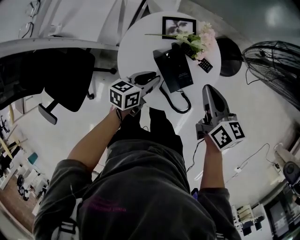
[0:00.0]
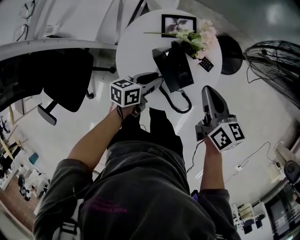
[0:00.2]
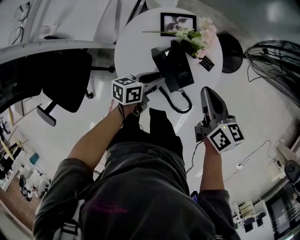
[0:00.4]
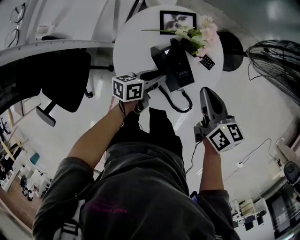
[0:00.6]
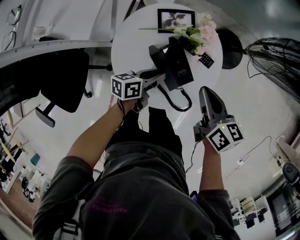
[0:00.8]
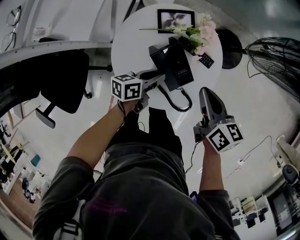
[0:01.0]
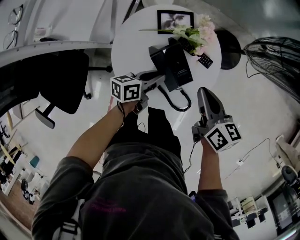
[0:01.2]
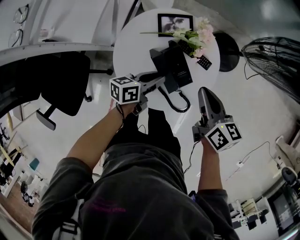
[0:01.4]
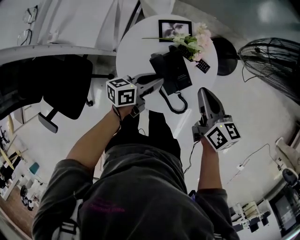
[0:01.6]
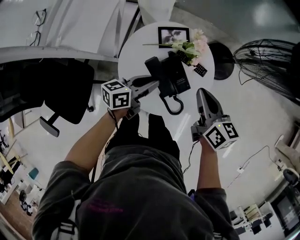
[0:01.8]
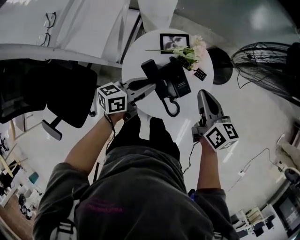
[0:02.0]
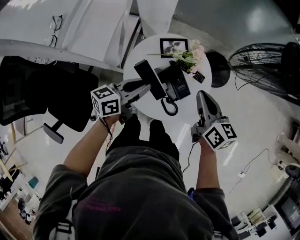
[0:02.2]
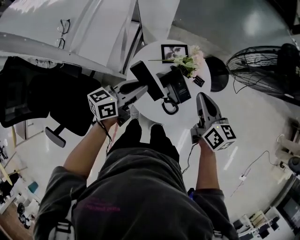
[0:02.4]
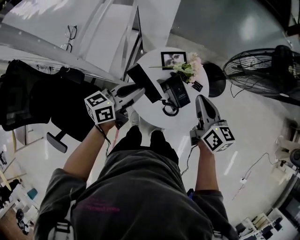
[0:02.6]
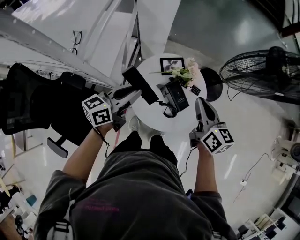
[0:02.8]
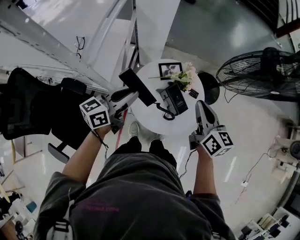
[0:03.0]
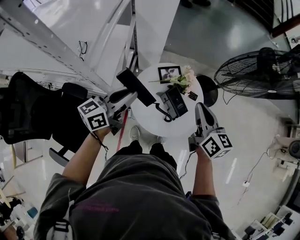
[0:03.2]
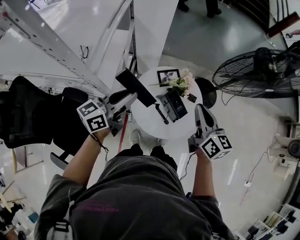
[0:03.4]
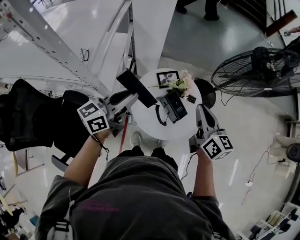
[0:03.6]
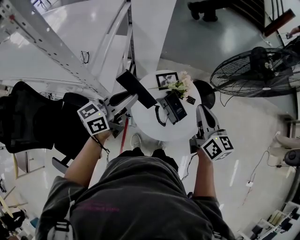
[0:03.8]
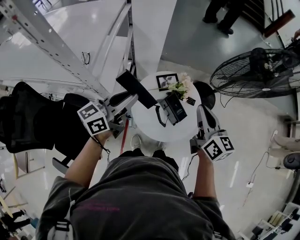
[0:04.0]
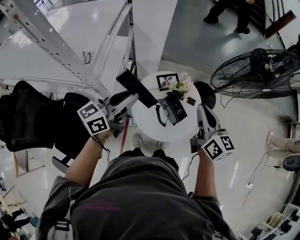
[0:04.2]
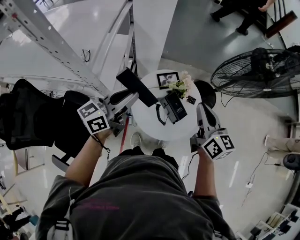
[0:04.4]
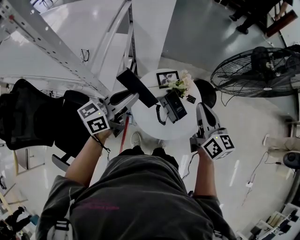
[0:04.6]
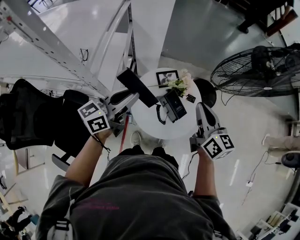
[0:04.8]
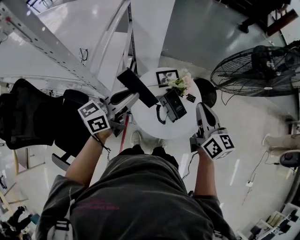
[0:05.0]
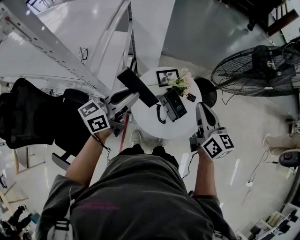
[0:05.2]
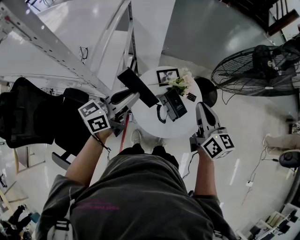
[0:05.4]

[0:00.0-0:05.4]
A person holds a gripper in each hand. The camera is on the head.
0:00.0 to 0:01.4: The grippers move only a little.
0:01.4 to 0:02.8: The right gripper goes some 15 cm upward, while the left gripper moves upward and to the left, roughly 30 cm, and swivels about 30 degrees.
0:02.8 to 0:04.0: Both grippers travel together upward, some 10 cm.
0:04.0 to 0:05.4: There are only small adjustments of the grippers.

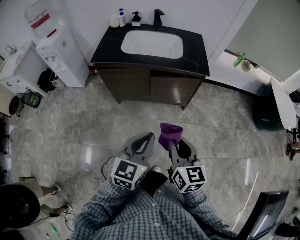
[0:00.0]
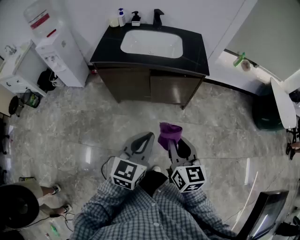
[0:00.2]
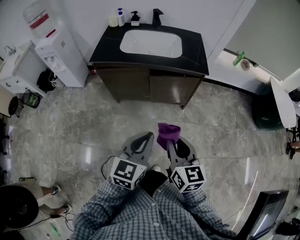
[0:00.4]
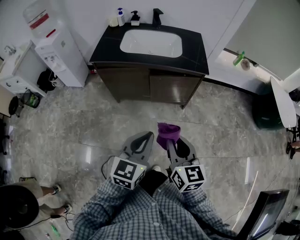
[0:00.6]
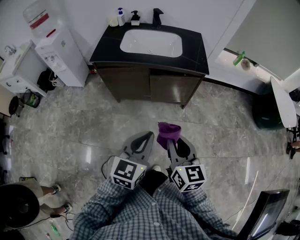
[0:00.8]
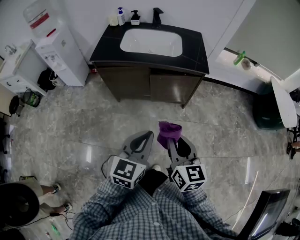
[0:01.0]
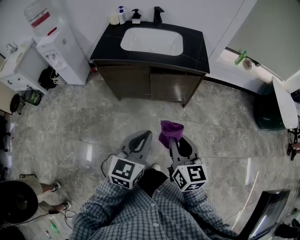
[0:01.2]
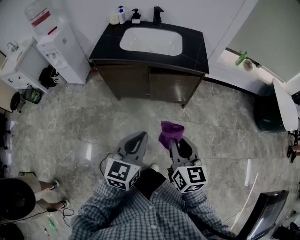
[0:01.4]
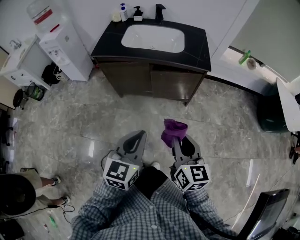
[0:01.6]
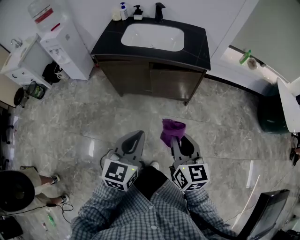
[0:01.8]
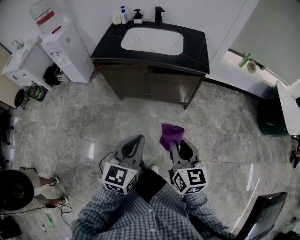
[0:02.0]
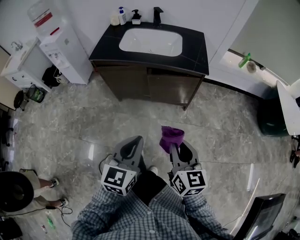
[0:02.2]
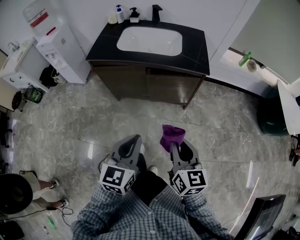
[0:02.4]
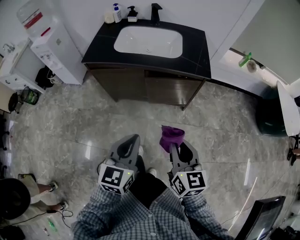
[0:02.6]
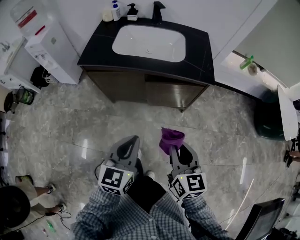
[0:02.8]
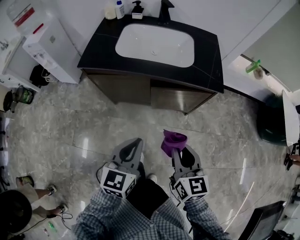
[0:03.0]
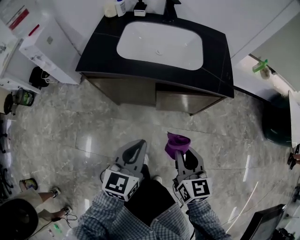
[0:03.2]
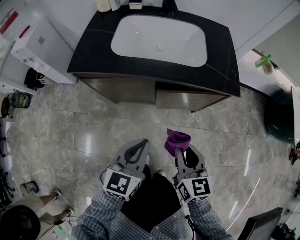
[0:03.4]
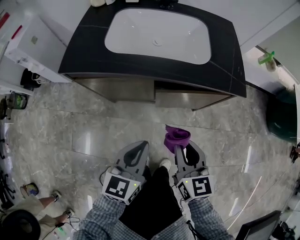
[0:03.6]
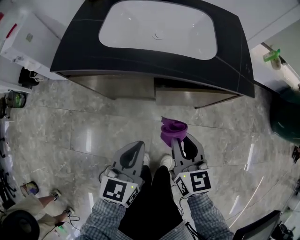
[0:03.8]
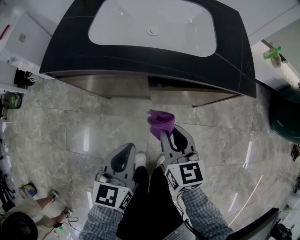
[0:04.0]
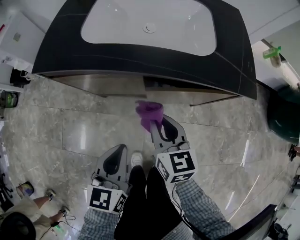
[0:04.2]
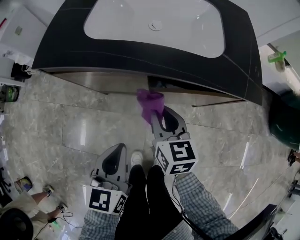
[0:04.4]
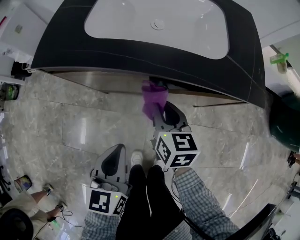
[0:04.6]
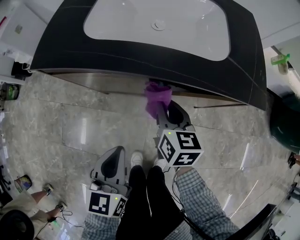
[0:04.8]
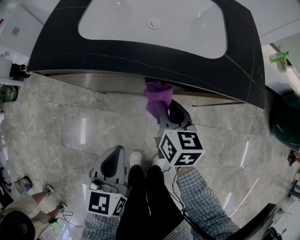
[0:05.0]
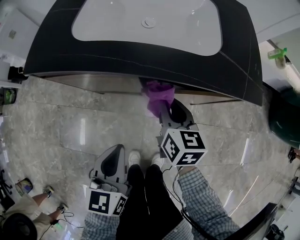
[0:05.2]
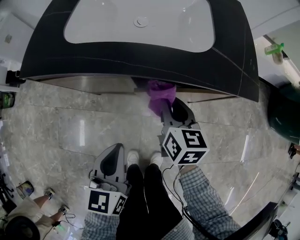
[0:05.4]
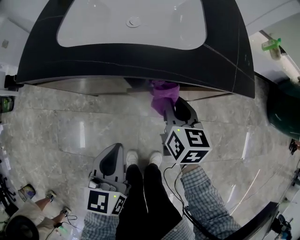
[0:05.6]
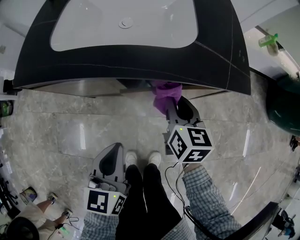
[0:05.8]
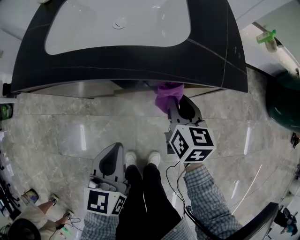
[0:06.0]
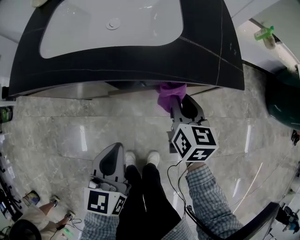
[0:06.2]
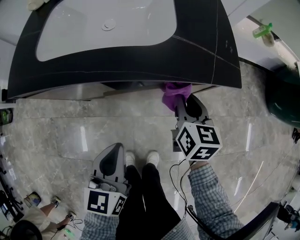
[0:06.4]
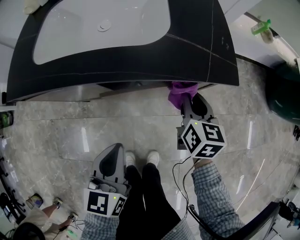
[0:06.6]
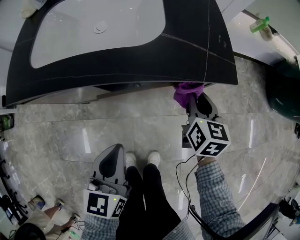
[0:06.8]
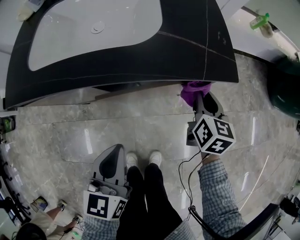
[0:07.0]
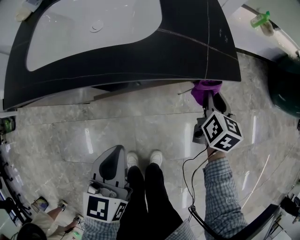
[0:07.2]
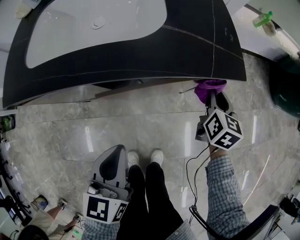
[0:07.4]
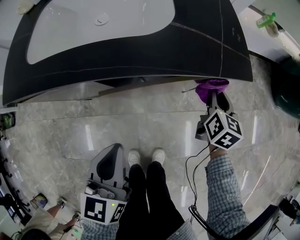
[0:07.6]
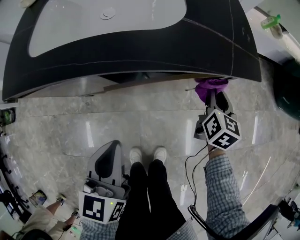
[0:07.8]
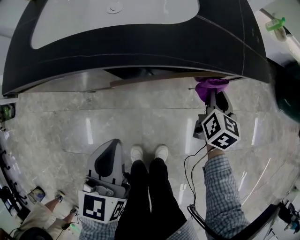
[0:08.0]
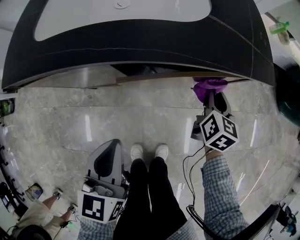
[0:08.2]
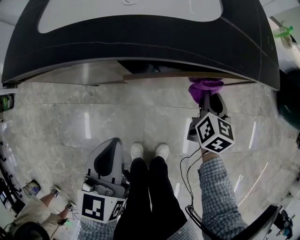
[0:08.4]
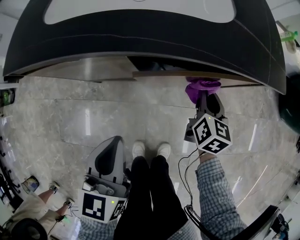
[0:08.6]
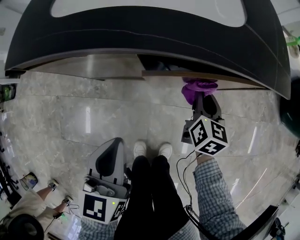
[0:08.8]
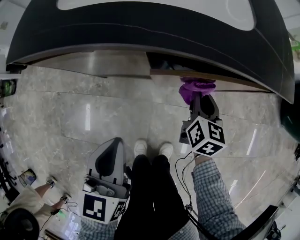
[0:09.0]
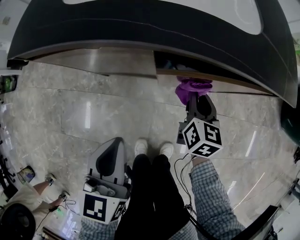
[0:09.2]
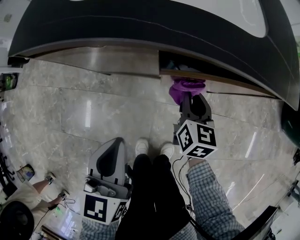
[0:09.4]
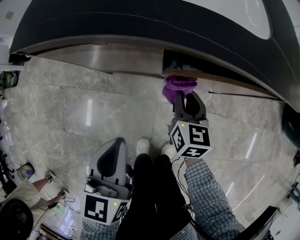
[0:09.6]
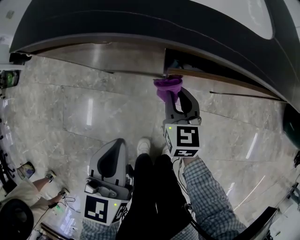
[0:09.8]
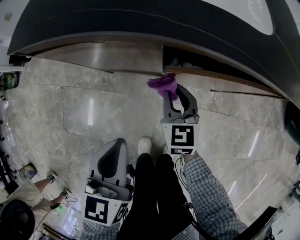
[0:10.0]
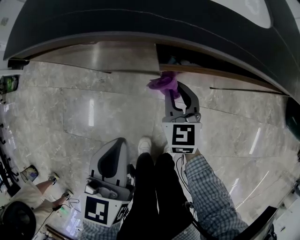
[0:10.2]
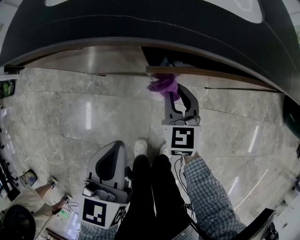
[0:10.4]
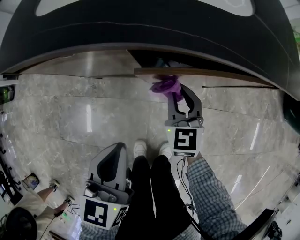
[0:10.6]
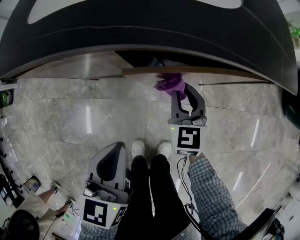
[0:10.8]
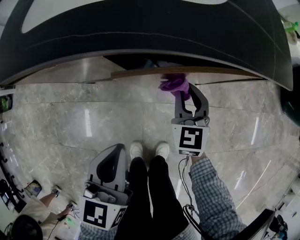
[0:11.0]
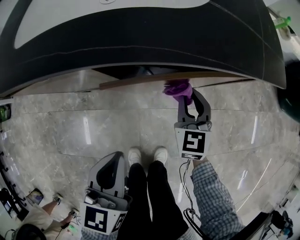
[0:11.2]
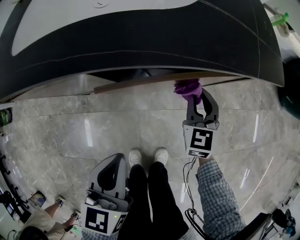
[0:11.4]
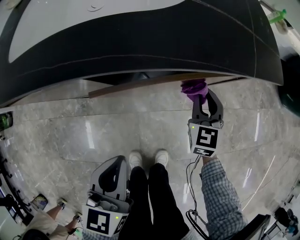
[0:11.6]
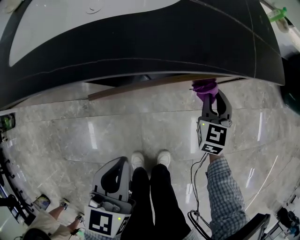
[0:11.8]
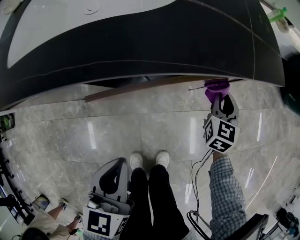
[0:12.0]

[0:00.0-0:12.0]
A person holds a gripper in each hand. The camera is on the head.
0:00.0 to 0:01.6: The grippers stay close to where they were, moving slightly.
0:01.6 to 0:03.0: The grippers both shift forward and downward by approximately 20 cm.
0:03.0 to 0:04.4: The right gripper is displaced forward and downward by some 30 cm, while the left gripper is displaced downward and forward by some 20 cm.
0:04.4 to 0:06.0: The left gripper shifts about 10 cm to the right, while the right gripper heads to the right, covering roughly 15 cm.
0:06.0 to 0:07.6: The right gripper is displaced to the right by about 20 cm, and changes its angle by approximately 20 degrees.
0:07.6 to 0:09.0: The left gripper travels to the left by approximately 10 cm. Meanwhile the right gripper moves to the left, about 20 cm.
0:09.0 to 0:10.4: The right gripper moves to the left, about 10 cm, and rotates approximately 30 degrees.
0:10.4 to 0:12.0: The right gripper travels to the right by about 30 cm, and turns by approximately 30 degrees. The left gripper goes about 10 cm to the right.

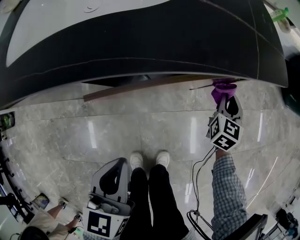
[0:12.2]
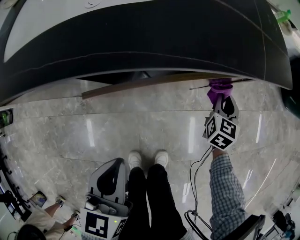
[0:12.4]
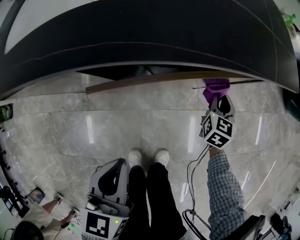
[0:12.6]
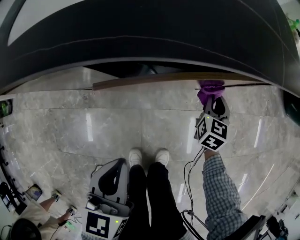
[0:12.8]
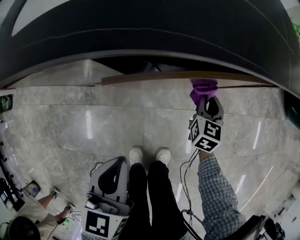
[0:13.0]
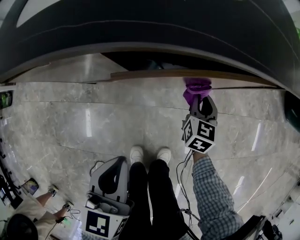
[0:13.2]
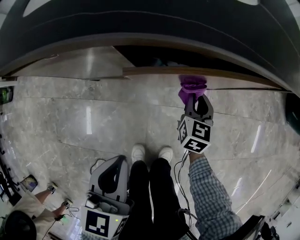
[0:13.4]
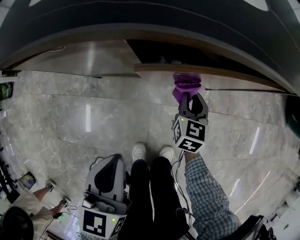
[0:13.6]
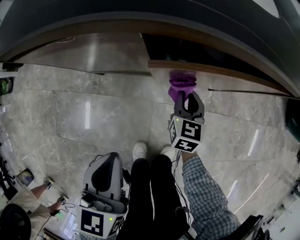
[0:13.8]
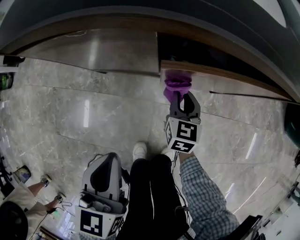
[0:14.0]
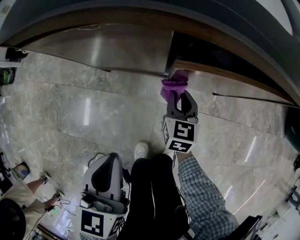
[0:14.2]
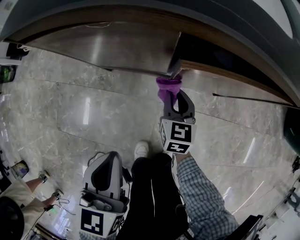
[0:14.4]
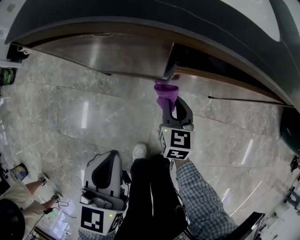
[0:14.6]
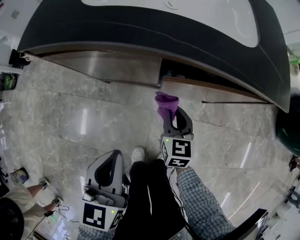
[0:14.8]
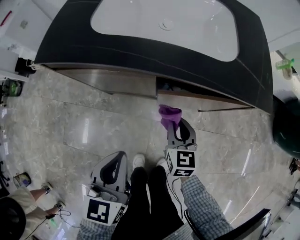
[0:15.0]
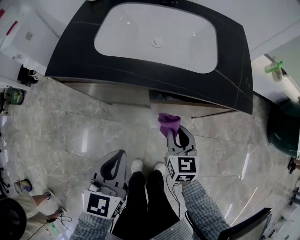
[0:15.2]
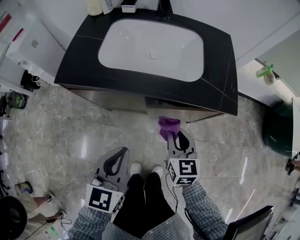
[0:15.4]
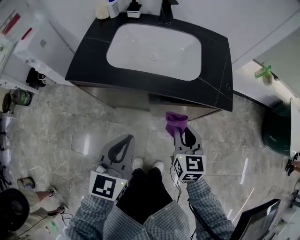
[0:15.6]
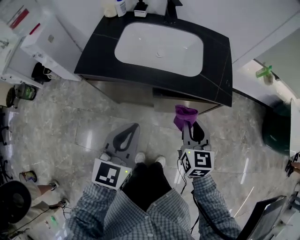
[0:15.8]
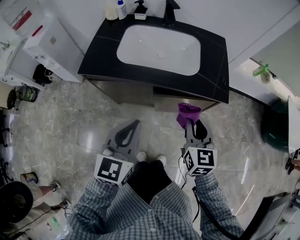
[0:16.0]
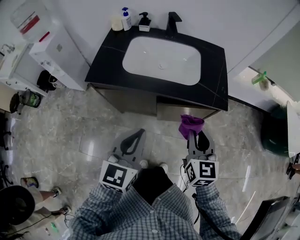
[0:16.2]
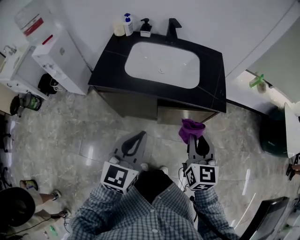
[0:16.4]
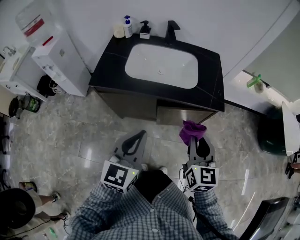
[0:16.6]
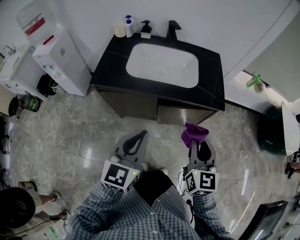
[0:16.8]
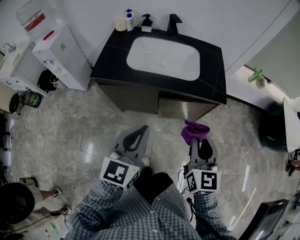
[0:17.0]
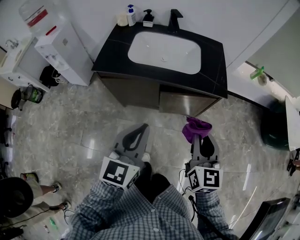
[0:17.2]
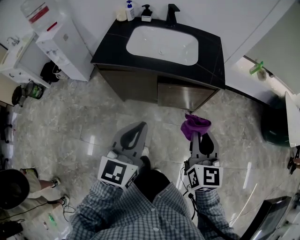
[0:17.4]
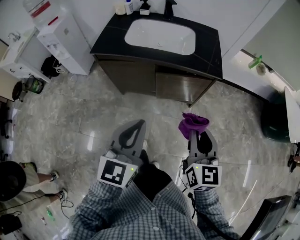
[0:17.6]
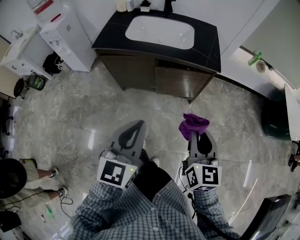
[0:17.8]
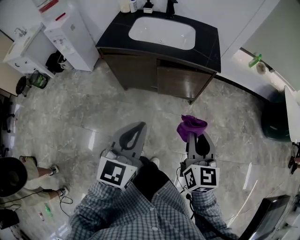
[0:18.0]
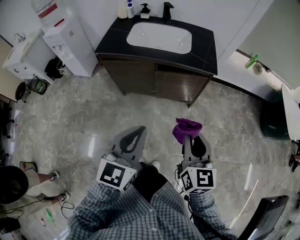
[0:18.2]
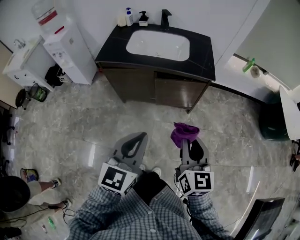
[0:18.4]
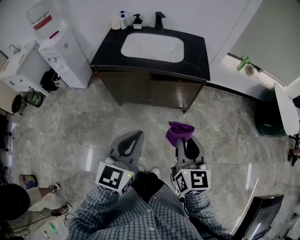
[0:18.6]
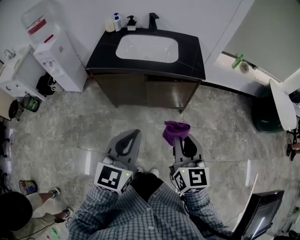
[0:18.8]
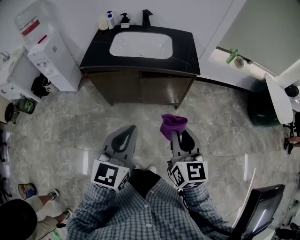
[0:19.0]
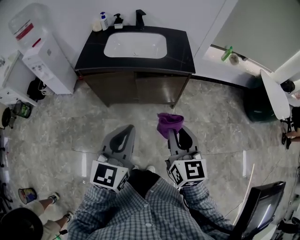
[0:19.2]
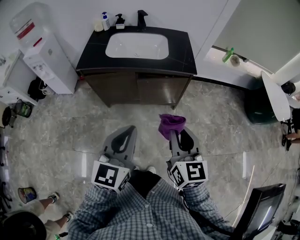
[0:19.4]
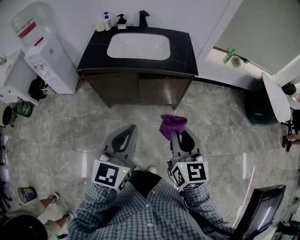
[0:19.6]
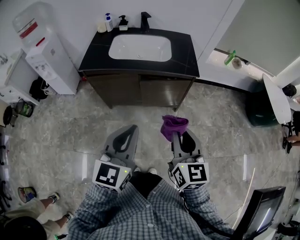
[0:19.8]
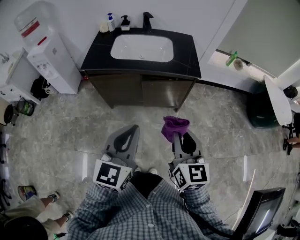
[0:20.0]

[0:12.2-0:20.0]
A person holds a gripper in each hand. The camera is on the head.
0:12.2 to 0:13.8: The left gripper heads to the left and backward, covering some 15 cm. The right gripper shifts some 30 cm to the left, and turns by approximately 20 degrees.
0:13.8 to 0:15.4: The two grippers go approximately 30 cm upward.
0:15.4 to 0:16.8: The left gripper shifts approximately 15 cm upward. The right gripper goes approximately 25 cm upward and backward.
0:16.8 to 0:18.4: The grippers both shift backward by approximately 20 cm.
0:18.4 to 0:20.0: The grippers make only small movements.
